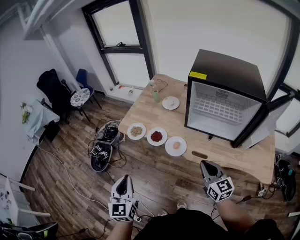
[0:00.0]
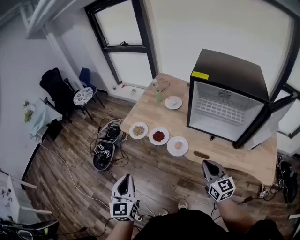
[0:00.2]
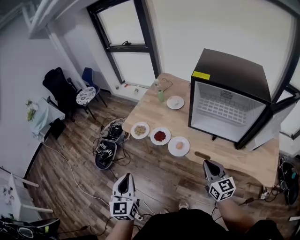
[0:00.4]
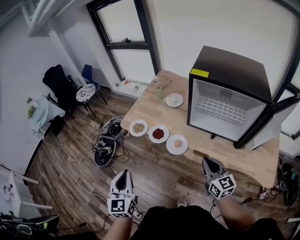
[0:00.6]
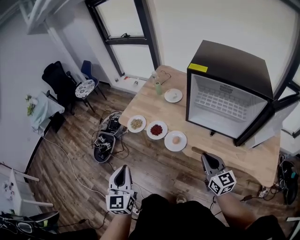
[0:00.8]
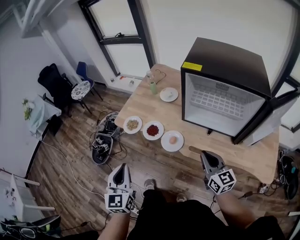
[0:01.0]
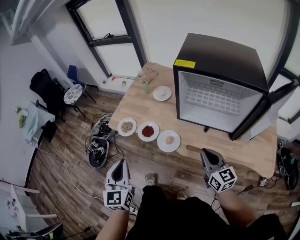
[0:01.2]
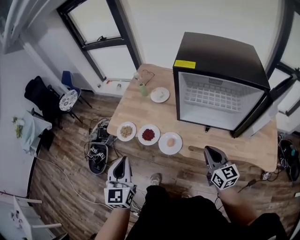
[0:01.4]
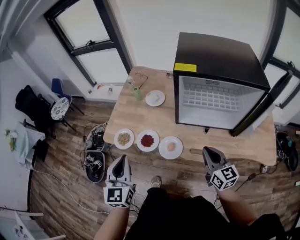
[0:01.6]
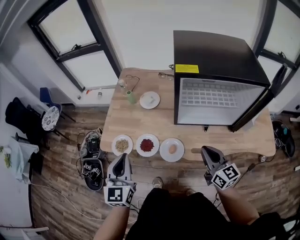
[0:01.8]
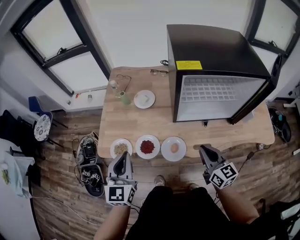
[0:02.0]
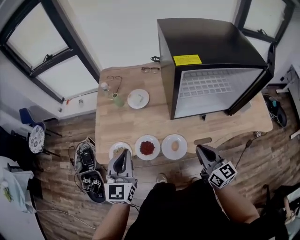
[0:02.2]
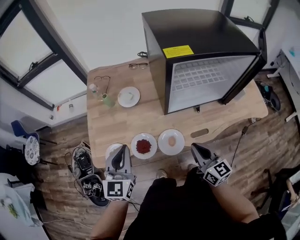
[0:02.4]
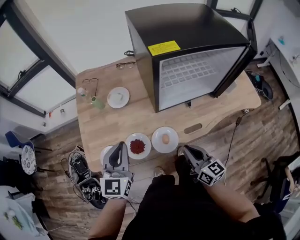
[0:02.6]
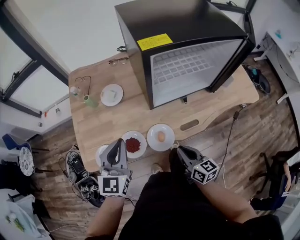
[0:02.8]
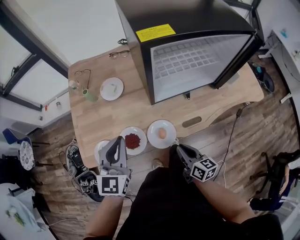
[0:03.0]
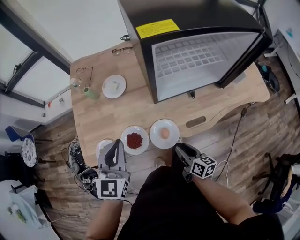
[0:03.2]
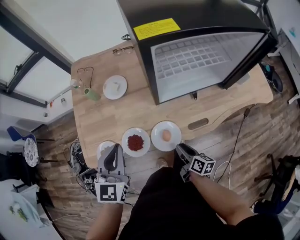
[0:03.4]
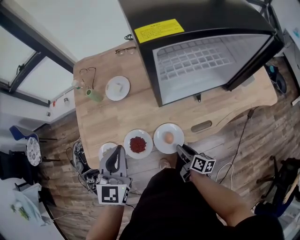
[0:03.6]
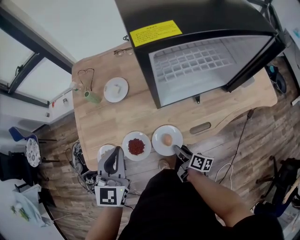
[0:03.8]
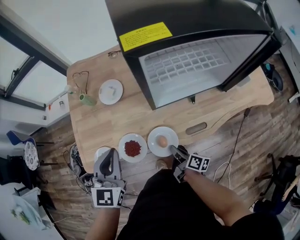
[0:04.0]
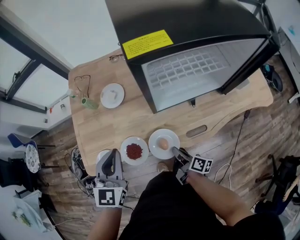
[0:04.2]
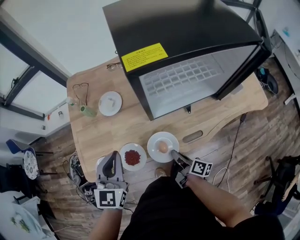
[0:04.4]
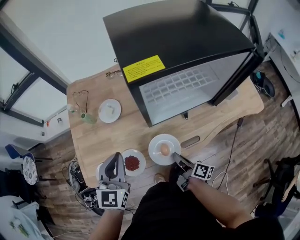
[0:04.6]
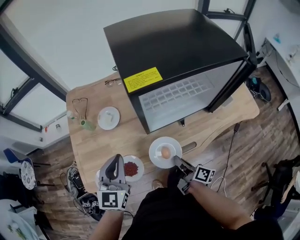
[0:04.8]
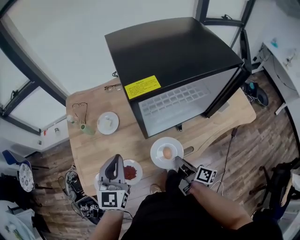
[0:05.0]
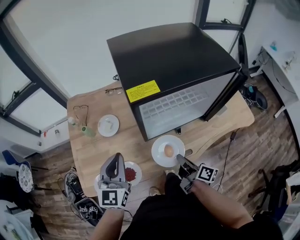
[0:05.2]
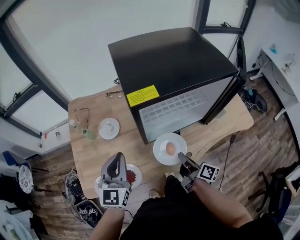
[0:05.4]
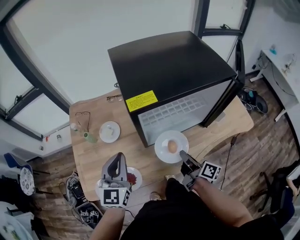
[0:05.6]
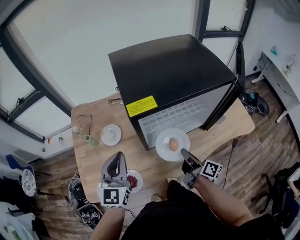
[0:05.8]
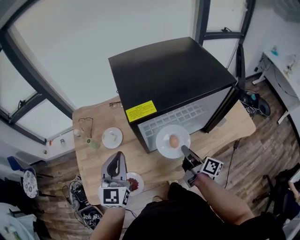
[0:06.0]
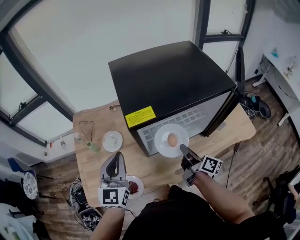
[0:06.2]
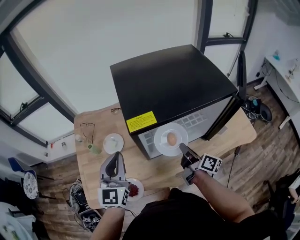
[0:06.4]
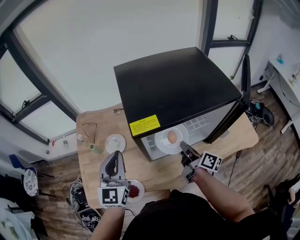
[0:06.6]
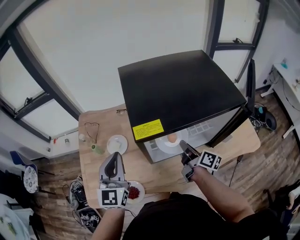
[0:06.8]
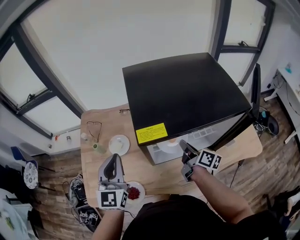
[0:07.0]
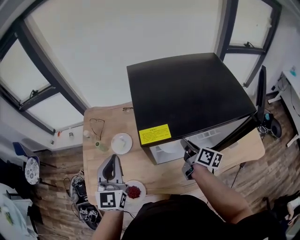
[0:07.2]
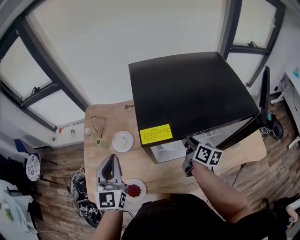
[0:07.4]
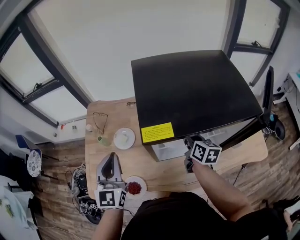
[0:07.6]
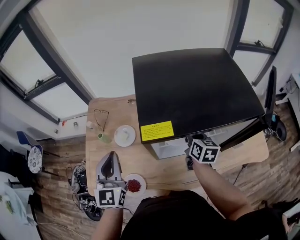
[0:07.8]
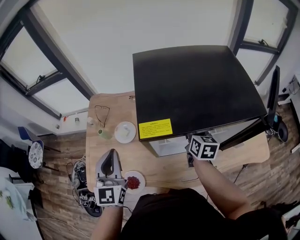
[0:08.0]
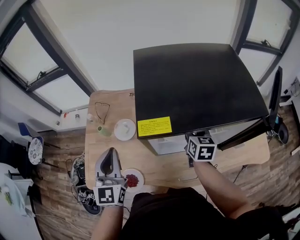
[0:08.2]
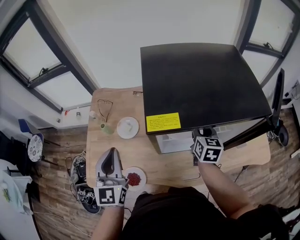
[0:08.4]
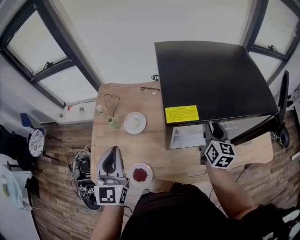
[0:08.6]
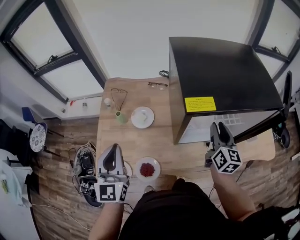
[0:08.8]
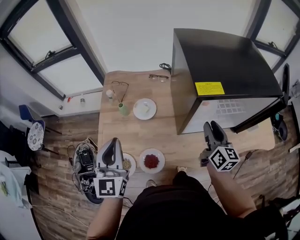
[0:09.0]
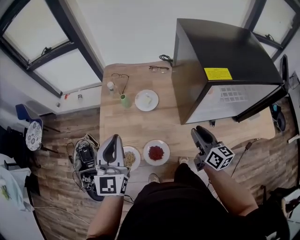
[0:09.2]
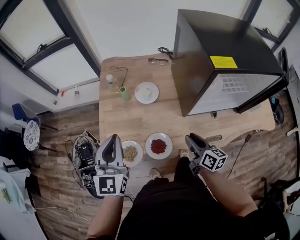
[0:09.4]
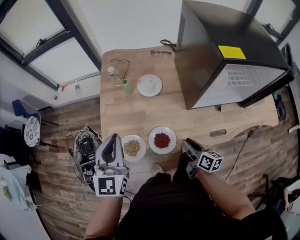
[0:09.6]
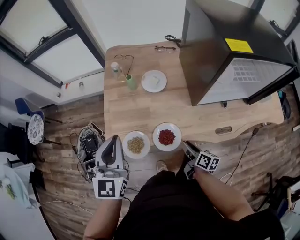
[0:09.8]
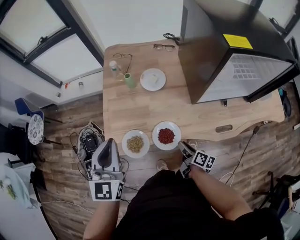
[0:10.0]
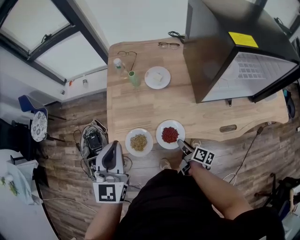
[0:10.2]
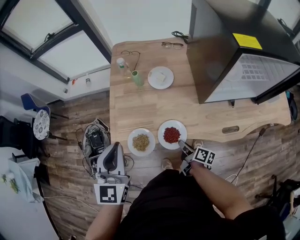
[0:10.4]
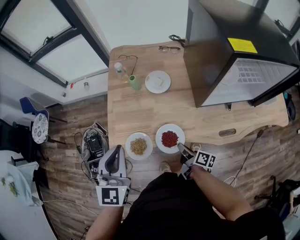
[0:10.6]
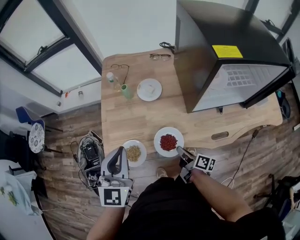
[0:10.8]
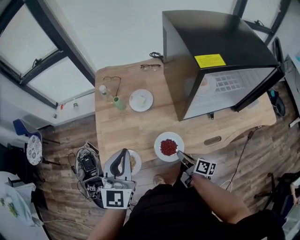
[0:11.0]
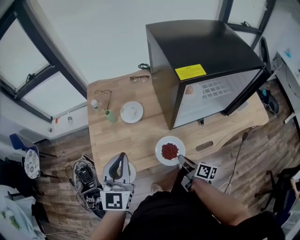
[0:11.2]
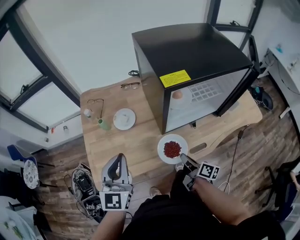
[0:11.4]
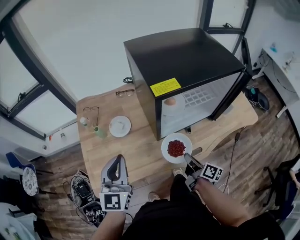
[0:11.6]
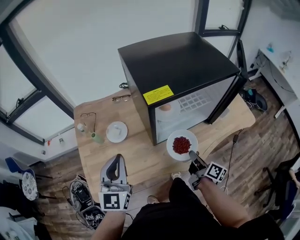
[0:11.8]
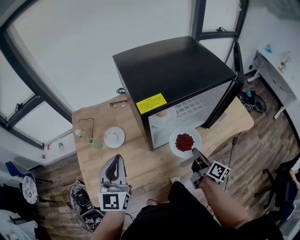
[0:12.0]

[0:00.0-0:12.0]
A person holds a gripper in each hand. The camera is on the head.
0:00.0 to 0:01.6: The right gripper is displaced forward by approximately 10 cm; the left gripper shifts approximately 20 cm forward.
0:01.6 to 0:03.0: The left gripper moves roughly 20 cm, and swivels roughly 40 degrees. Meanwhile the right gripper goes approximately 15 cm downward, and changes its angle by roughly 40 degrees.
0:03.0 to 0:04.4: The right gripper goes about 10 cm forward and downward, rotates roughly 40 degrees, and opens and closes again.
0:04.4 to 0:06.0: The right gripper heads upward, forward and to the right, covering approximately 25 cm, and swivels some 20 degrees, while the left gripper travels upward, forward and to the right by some 15 cm.
0:06.0 to 0:07.6: The right gripper is displaced forward by some 15 cm, and changes its angle by about 40 degrees. Meanwhile the left gripper moves roughly 5 cm.
0:07.6 to 0:09.0: The left gripper shifts approximately 15 cm to the left and backward; the right gripper travels backward and to the left by roughly 10 cm.
0:09.0 to 0:10.4: The right gripper moves downward, to the left and backward, some 40 cm, rotates around the line of its fingers by some 50 degrees, clockwise from behind, and closes, while the left gripper heads to the left, backward and downward, covering approximately 15 cm.
0:10.4 to 0:12.0: The left gripper shifts by roughly 25 cm, and rotates some 20 degrees, while the right gripper moves roughly 35 cm, and changes its angle by roughly 40 degrees.

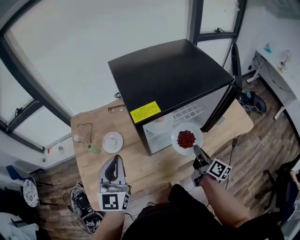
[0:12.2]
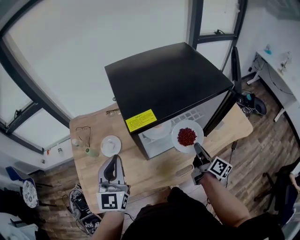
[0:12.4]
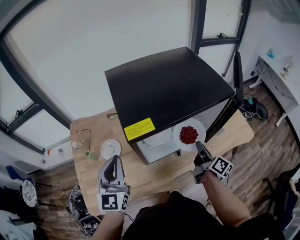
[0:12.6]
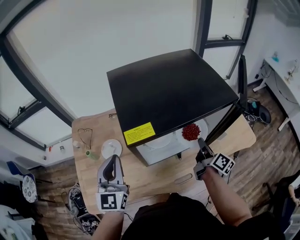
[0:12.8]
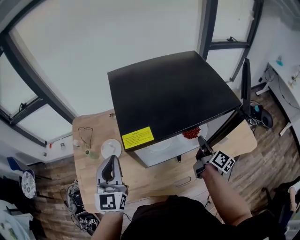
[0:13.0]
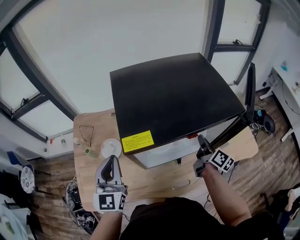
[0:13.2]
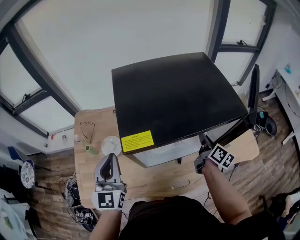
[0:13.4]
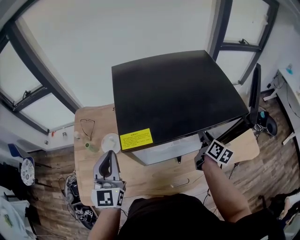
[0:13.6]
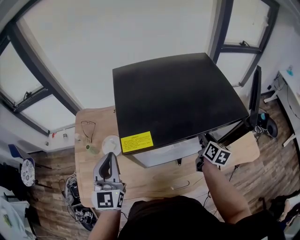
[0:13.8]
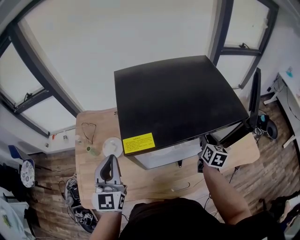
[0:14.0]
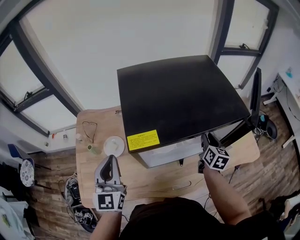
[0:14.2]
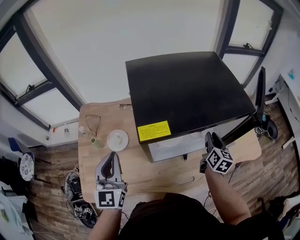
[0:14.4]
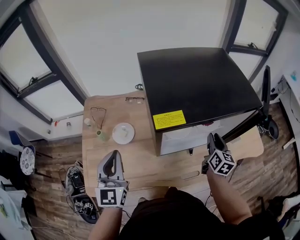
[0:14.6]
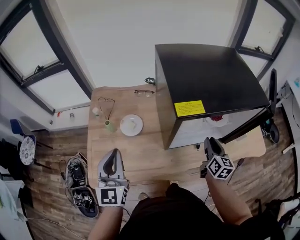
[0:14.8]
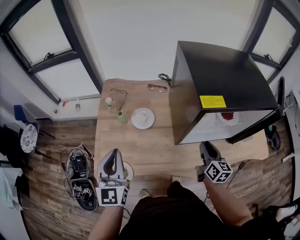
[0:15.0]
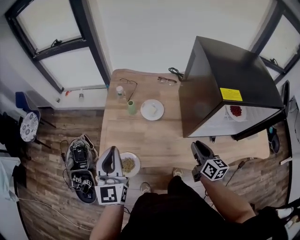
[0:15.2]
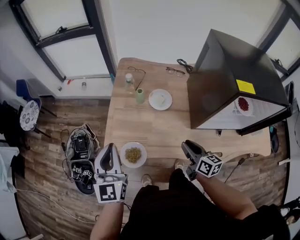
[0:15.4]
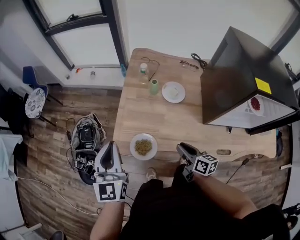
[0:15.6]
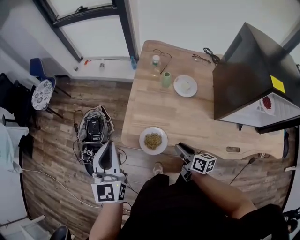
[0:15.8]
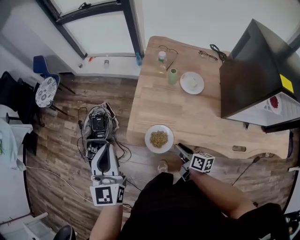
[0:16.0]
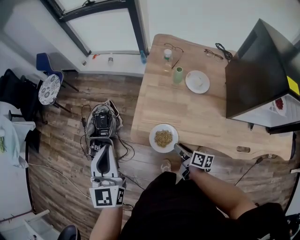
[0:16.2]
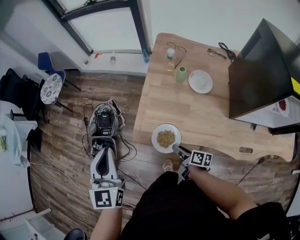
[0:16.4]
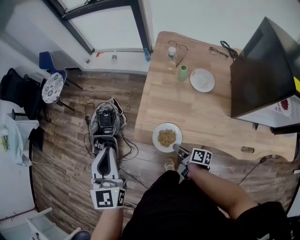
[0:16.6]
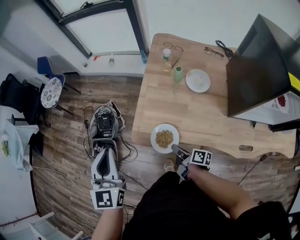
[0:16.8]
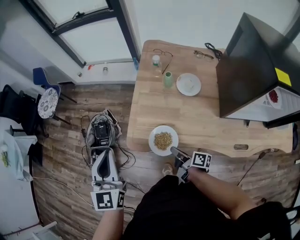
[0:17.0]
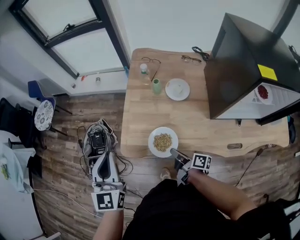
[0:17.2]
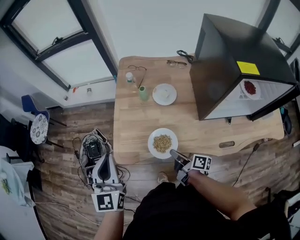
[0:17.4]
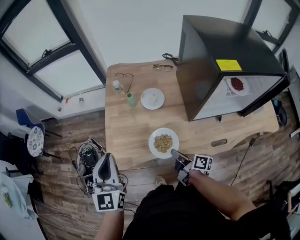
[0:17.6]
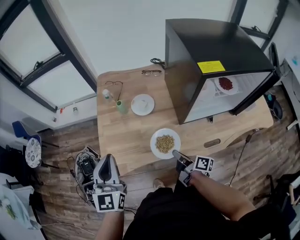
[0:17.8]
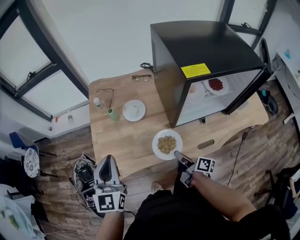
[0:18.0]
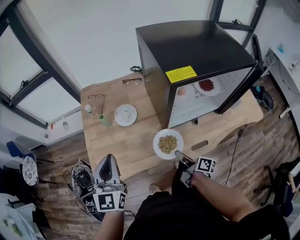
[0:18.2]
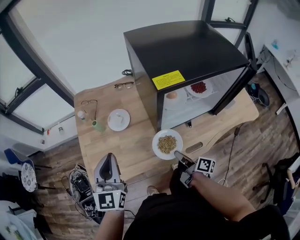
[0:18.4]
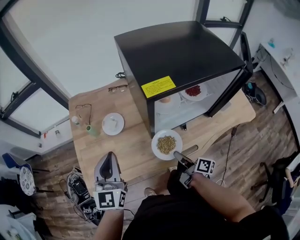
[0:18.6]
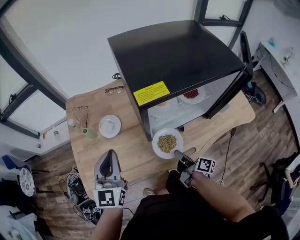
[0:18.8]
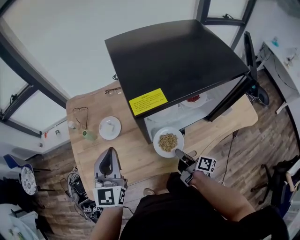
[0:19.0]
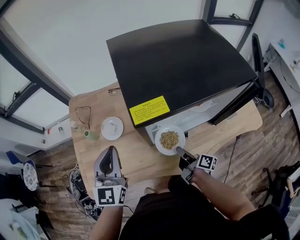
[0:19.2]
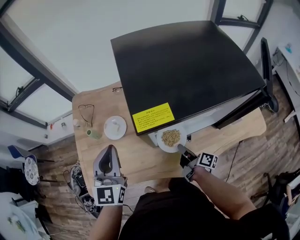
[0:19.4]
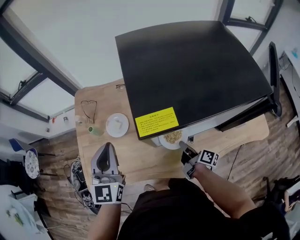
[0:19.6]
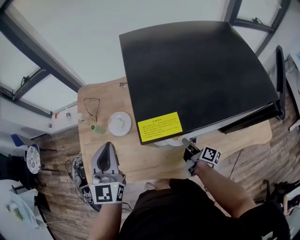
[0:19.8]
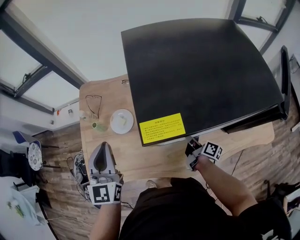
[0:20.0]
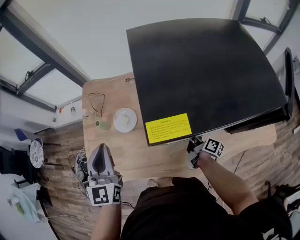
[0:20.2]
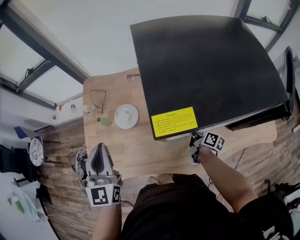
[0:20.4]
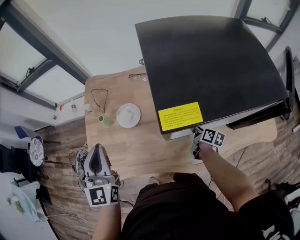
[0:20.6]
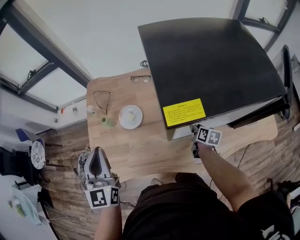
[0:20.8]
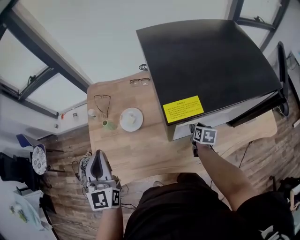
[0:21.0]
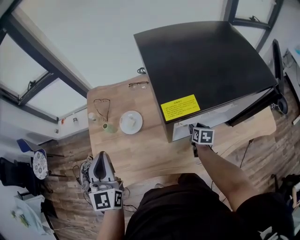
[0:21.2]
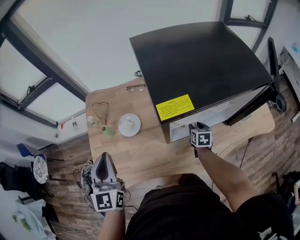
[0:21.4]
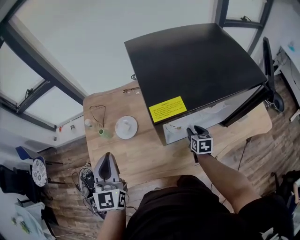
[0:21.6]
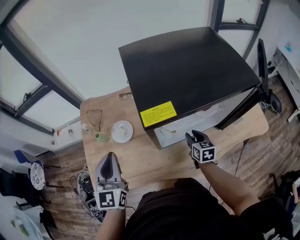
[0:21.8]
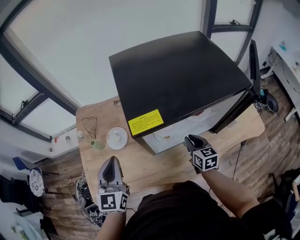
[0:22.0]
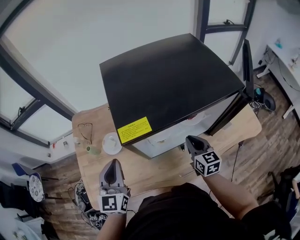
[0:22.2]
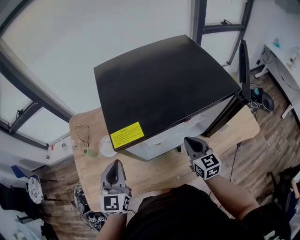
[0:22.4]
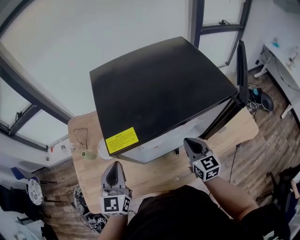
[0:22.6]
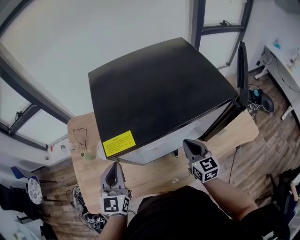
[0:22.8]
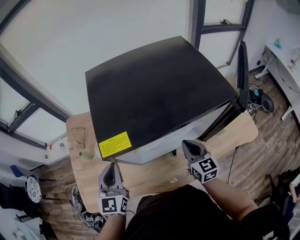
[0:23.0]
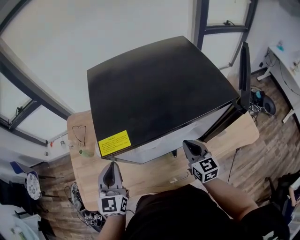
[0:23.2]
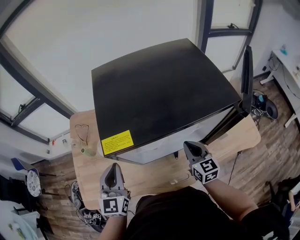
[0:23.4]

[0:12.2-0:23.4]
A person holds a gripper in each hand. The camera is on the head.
0:12.2 to 0:13.8: The right gripper shifts roughly 20 cm forward and to the right, and turns by about 30 degrees; the left gripper heads forward, covering some 5 cm.
0:13.8 to 0:15.4: The right gripper moves approximately 40 cm, and rotates roughly 40 degrees; the left gripper changes place by some 35 cm, and swivels some 20 degrees.
0:15.4 to 0:17.0: The left gripper shifts approximately 10 cm to the left. The right gripper moves to the left and downward, approximately 25 cm, rolls clockwise, seen from behind, by some 40 degrees, and closes up.
0:17.0 to 0:18.6: The right gripper ends up some 35 cm from where it was, and turns by approximately 40 degrees. Meanwhile the left gripper shifts by roughly 35 cm, and swivels some 30 degrees.
0:18.6 to 0:20.2: The right gripper is displaced forward and to the right by some 20 cm. Meanwhile the left gripper is displaced forward by roughly 10 cm.
0:20.2 to 0:21.8: The right gripper shifts approximately 5 cm upward, twists some 50 degrees counterclockwise, seen from behind, and opens. Meanwhile the left gripper moves approximately 5 cm to the left and comes back.
0:21.8 to 0:23.4: The right gripper travels upward and to the right by approximately 10 cm, and closes its fingers. The left gripper travels to the right by some 10 cm.
